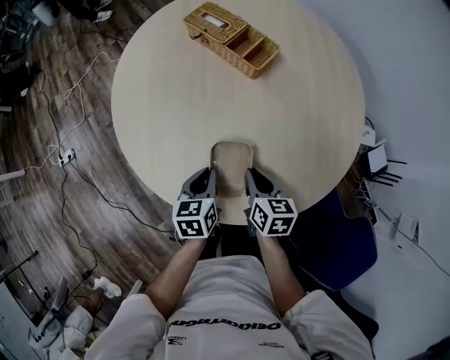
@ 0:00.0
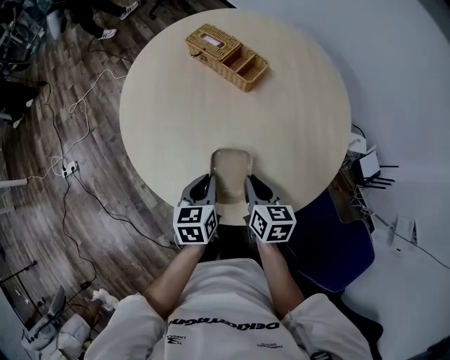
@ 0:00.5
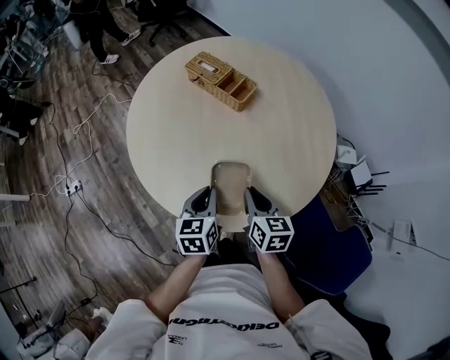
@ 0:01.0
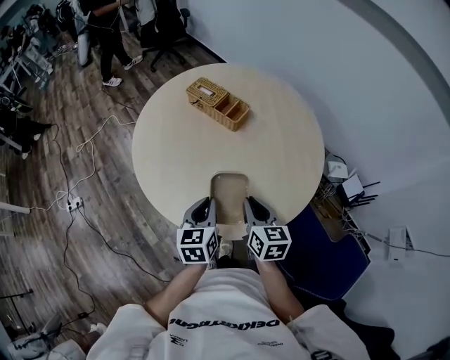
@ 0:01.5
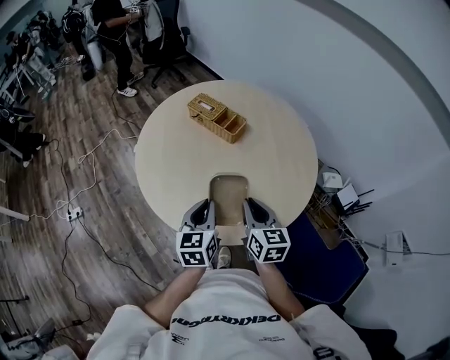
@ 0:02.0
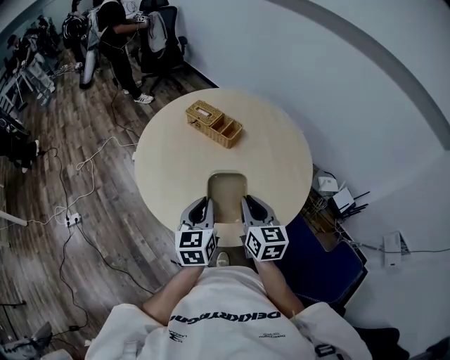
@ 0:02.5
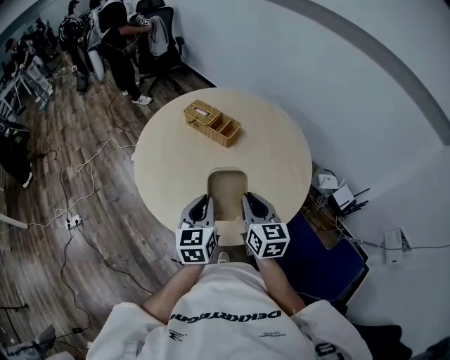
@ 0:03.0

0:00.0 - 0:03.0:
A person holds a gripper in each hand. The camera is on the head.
0:00.0 - 0:01.5: The two grippers go approximately 15 cm upward.
0:01.5 - 0:03.0: The grippers both shift upward by roughly 10 cm.

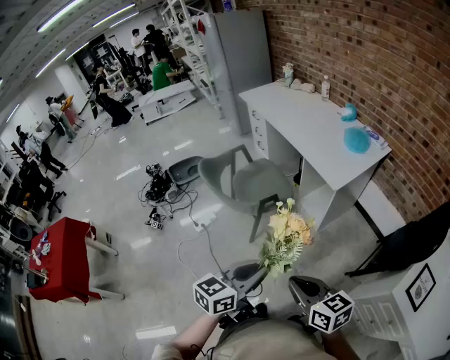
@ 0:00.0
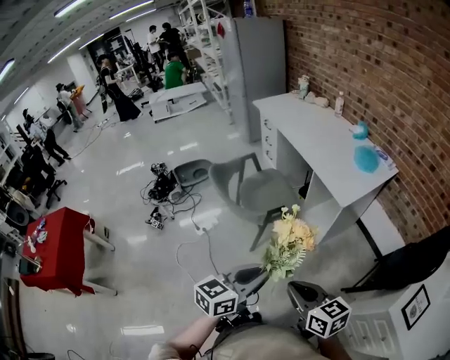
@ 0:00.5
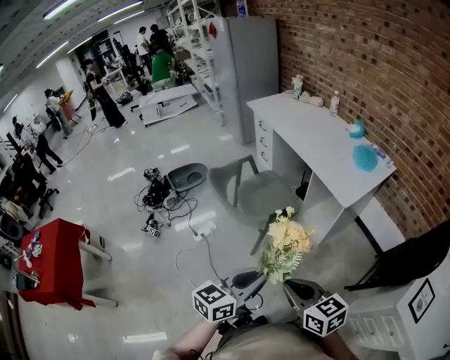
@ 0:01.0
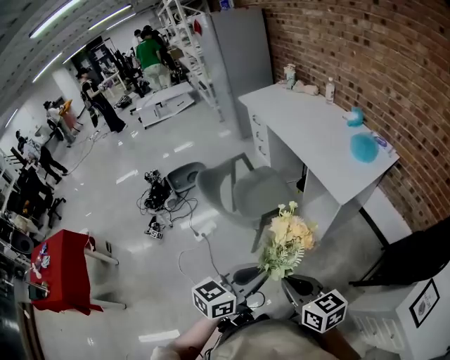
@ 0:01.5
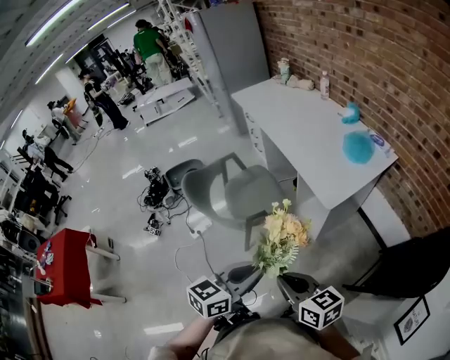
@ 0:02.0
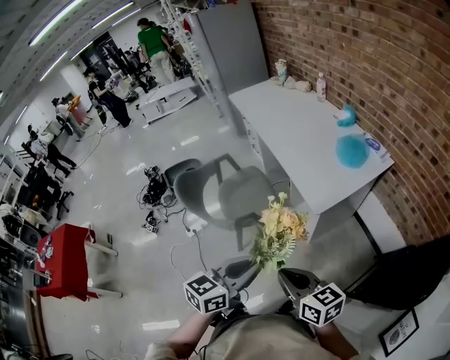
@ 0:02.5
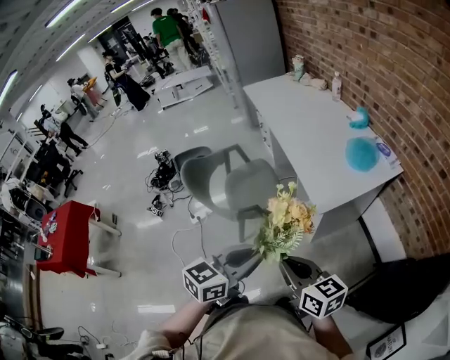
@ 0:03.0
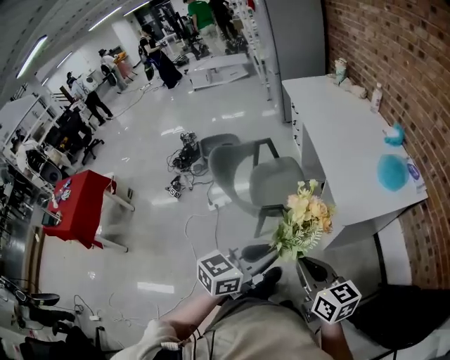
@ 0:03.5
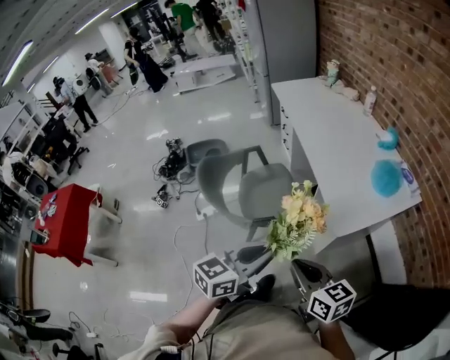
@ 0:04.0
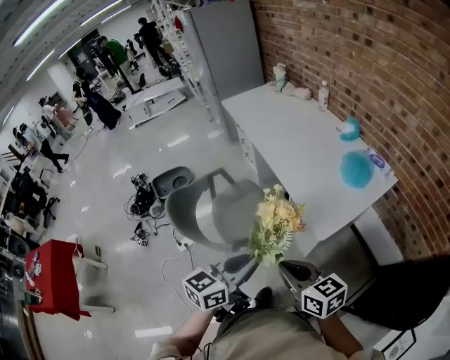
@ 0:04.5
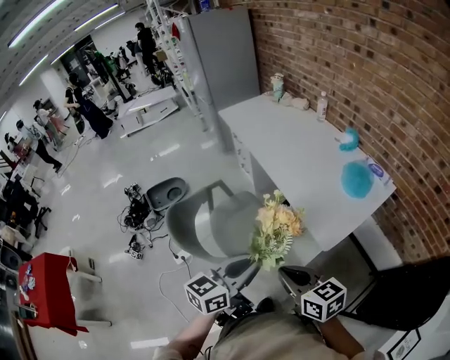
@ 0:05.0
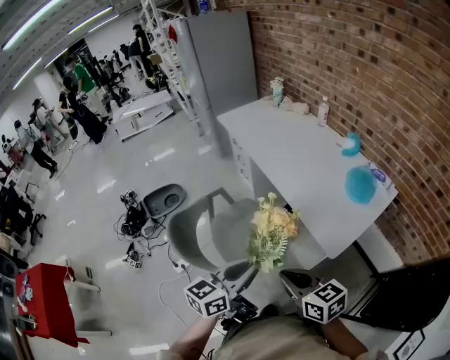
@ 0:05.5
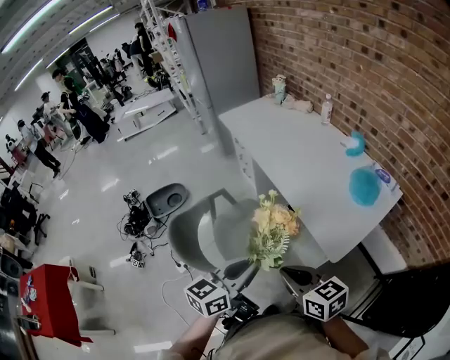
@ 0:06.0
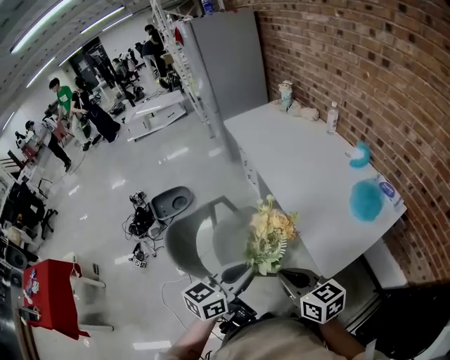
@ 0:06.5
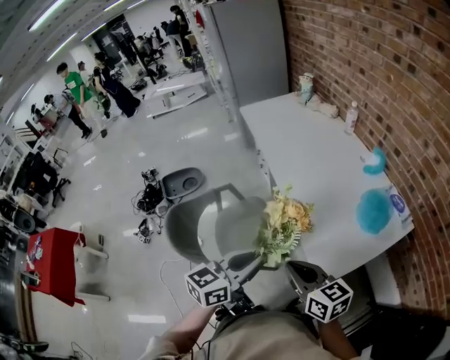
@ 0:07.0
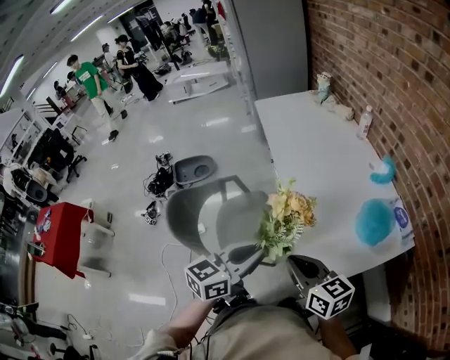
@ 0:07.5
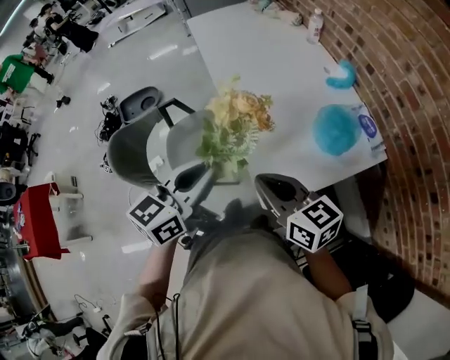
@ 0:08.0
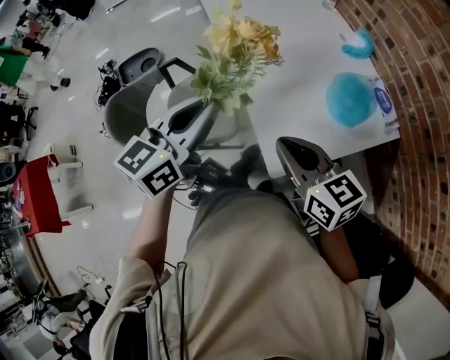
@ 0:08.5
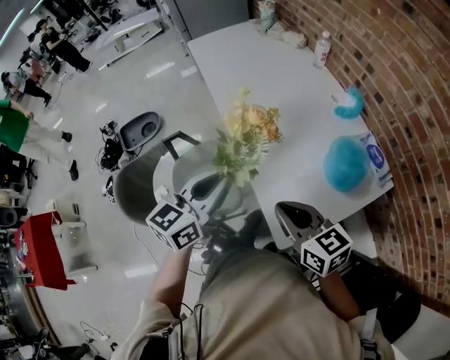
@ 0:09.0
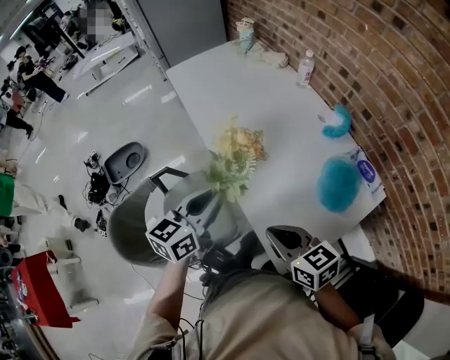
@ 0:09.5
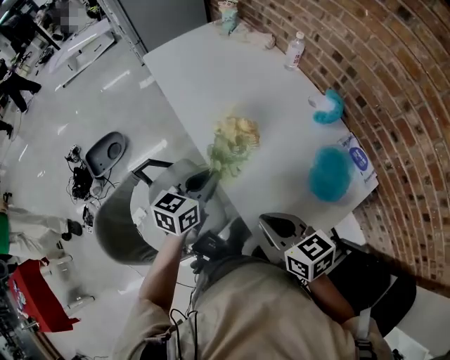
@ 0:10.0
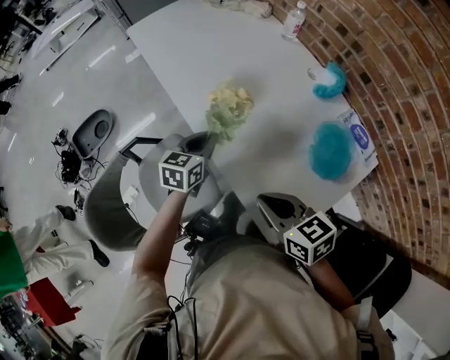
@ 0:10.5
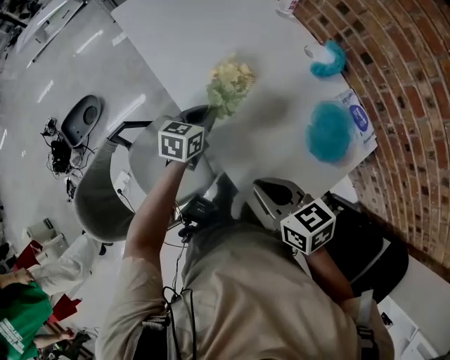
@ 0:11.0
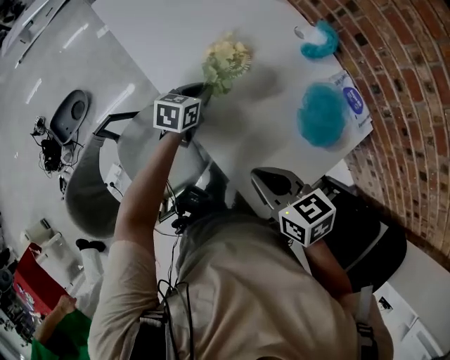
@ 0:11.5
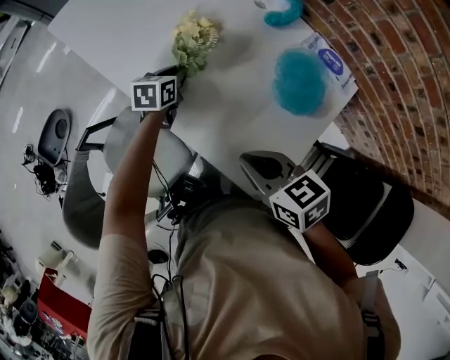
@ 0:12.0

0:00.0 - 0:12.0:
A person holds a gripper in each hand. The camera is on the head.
0:00.0 - 0:02.0: The right gripper goes some 15 cm forward. Meanwhile the left gripper moves forward and to the right, some 15 cm.
0:02.0 - 0:04.0: Both grippers move forward, roughly 10 cm.
0:04.0 - 0:06.0: The grippers both shift forward and to the left by some 15 cm.
0:06.0 - 0:08.0: The right gripper moves to the right and forward, approximately 20 cm, while the left gripper shifts some 15 cm to the right.
0:08.0 - 0:10.0: The right gripper heads forward and downward, covering about 15 cm, while the left gripper travels forward and downward by approximately 30 cm.
0:10.0 - 0:12.0: The left gripper shifts roughly 25 cm downward, forward and to the right, and changes its angle by some 20 degrees. The right gripper moves approximately 5 cm.

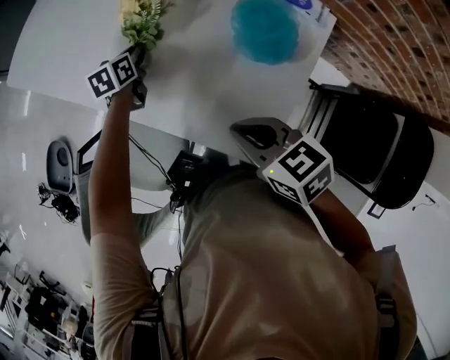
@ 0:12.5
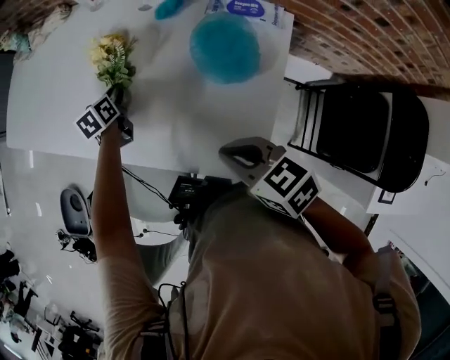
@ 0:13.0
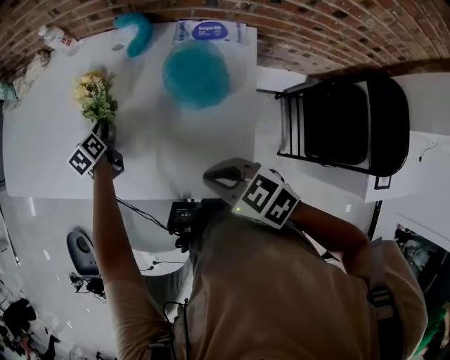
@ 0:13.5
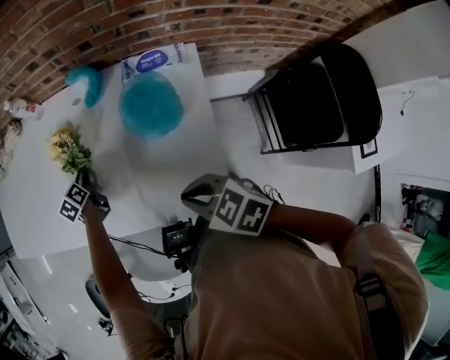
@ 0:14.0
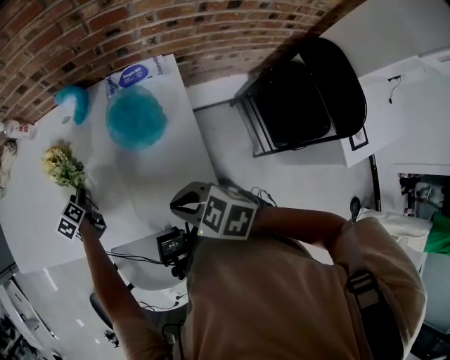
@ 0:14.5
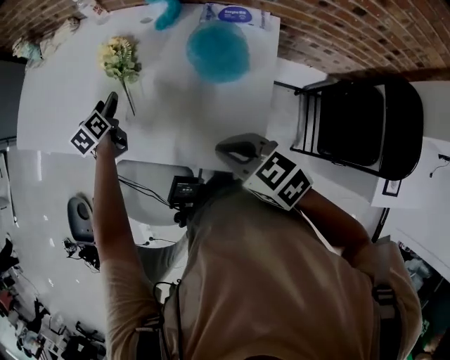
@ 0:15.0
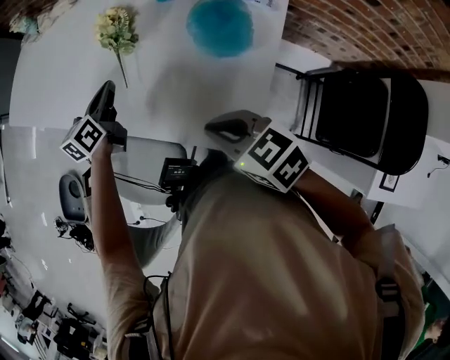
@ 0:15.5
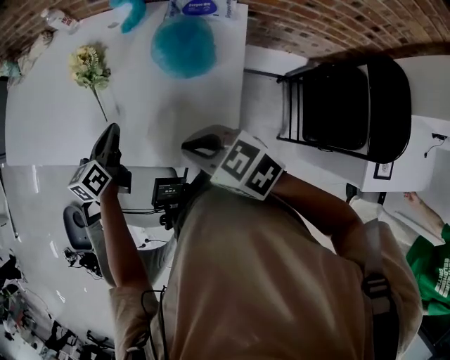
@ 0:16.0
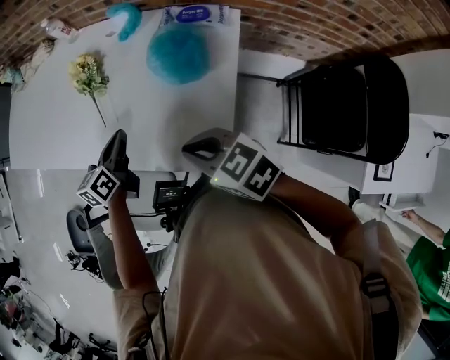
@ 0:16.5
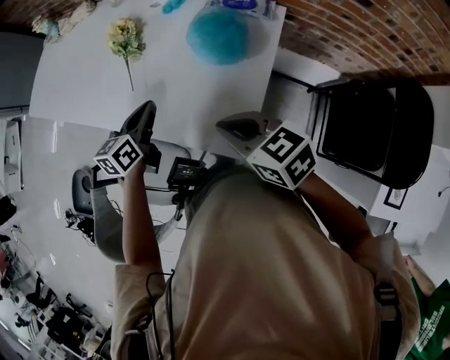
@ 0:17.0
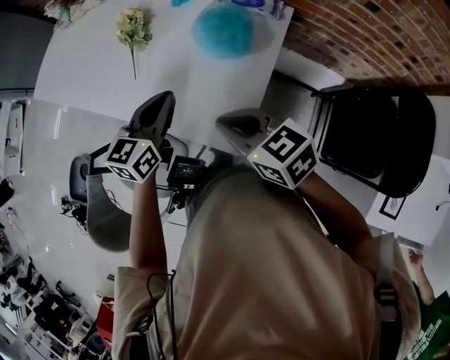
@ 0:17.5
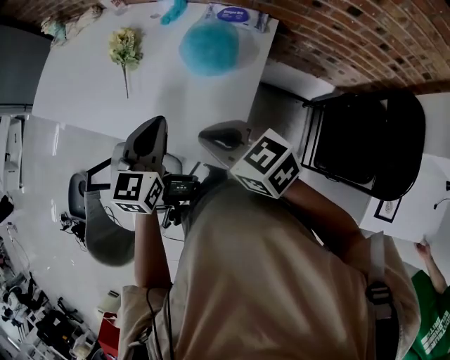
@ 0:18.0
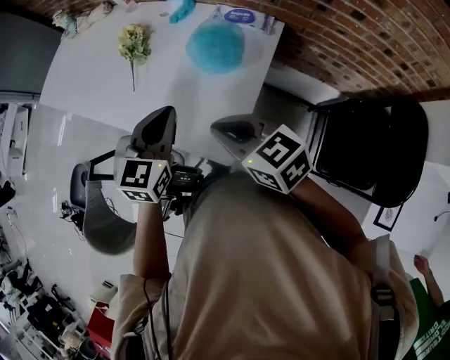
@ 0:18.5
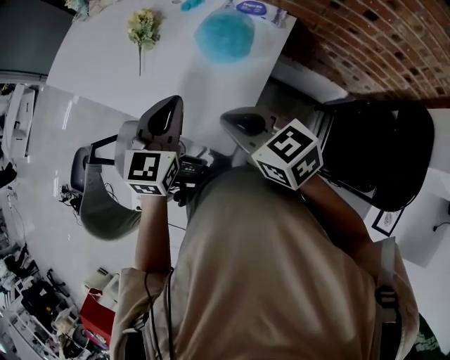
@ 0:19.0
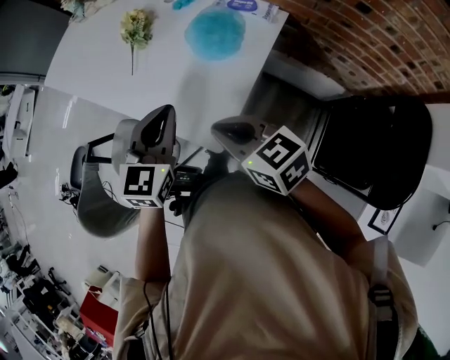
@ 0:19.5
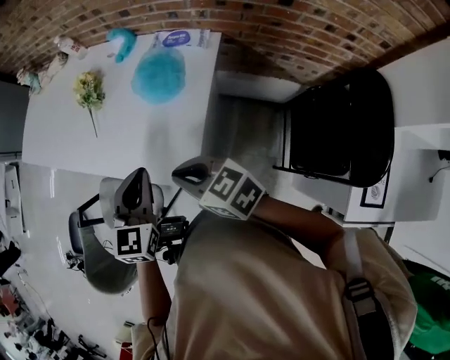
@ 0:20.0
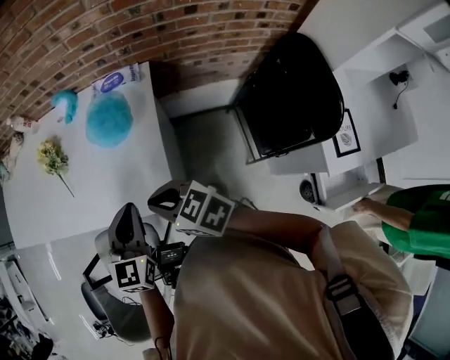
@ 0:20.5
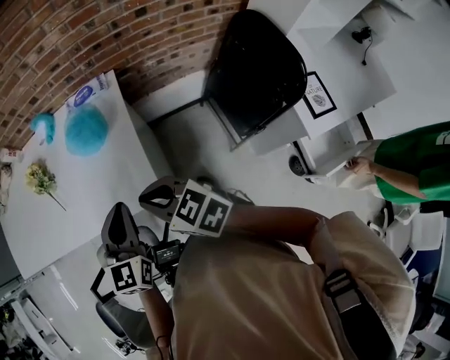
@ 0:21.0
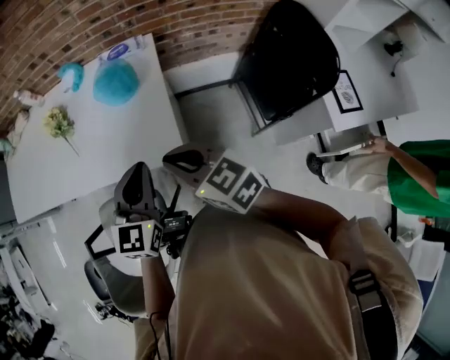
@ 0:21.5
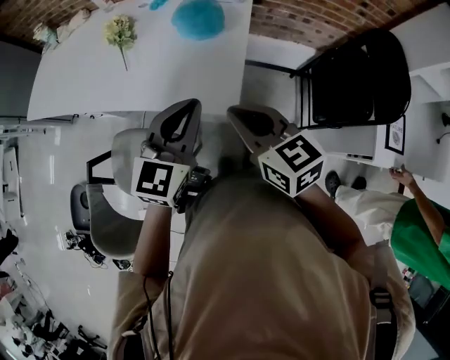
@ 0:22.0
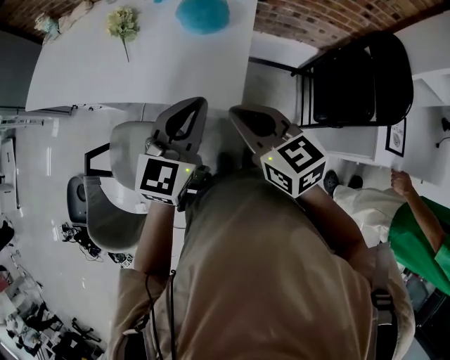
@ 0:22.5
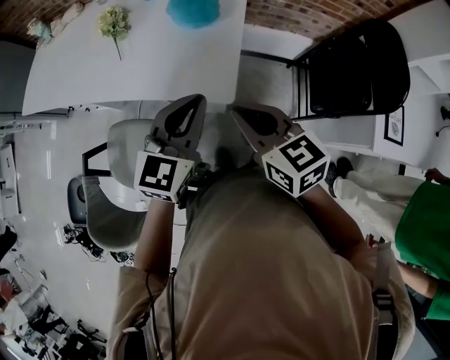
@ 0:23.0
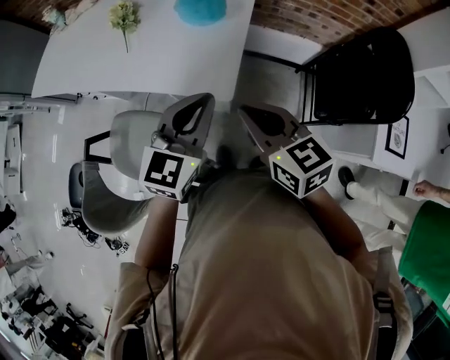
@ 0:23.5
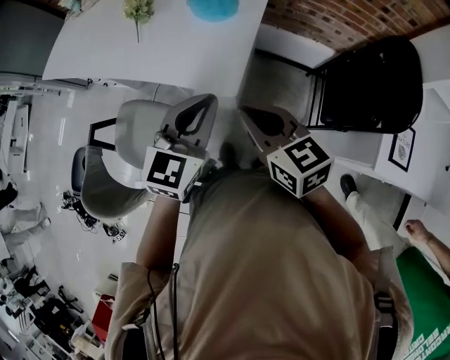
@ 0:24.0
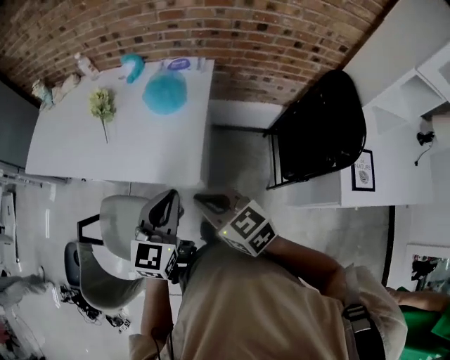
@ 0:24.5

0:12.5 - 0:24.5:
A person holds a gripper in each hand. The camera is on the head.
0:12.5 - 0:14.5: The right gripper changes place by some 5 cm. Meanwhile the left gripper opens.
0:14.5 - 0:16.5: The left gripper goes approximately 20 cm backward and upward, turns by approximately 20 degrees, and closes up.
0:16.5 - 0:18.5: The left gripper heads upward, backward and to the right, covering approximately 20 cm, and changes its angle by roughly 40 degrees, while the right gripper travels to the right by about 5 cm.
0:18.5 - 0:20.5: The left gripper goes roughly 10 cm backward.
0:20.5 - 0:22.5: The two grippers go some 10 cm backward.
0:22.5 - 0:24.5: The left gripper ends up some 5 cm from where it was.
